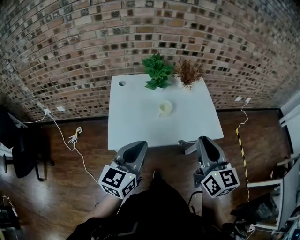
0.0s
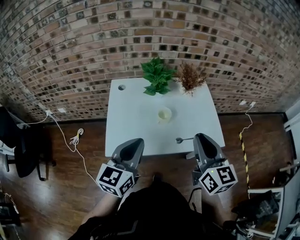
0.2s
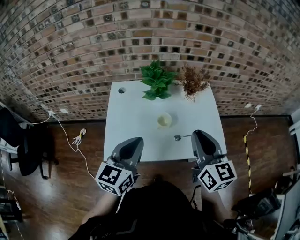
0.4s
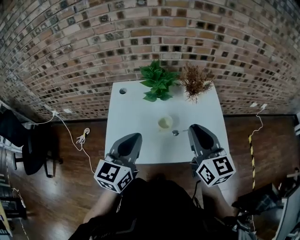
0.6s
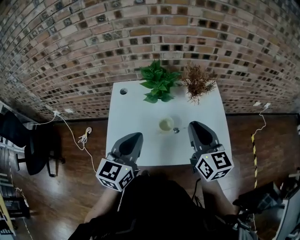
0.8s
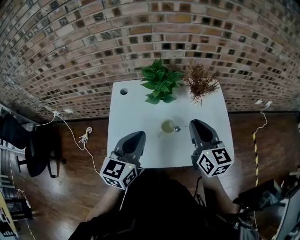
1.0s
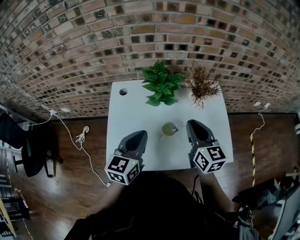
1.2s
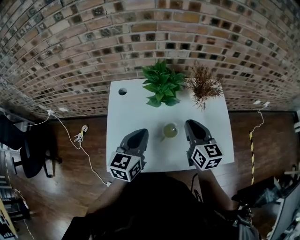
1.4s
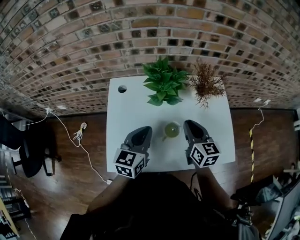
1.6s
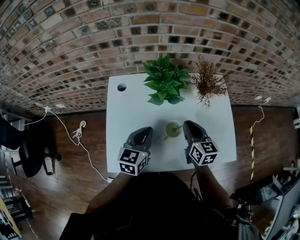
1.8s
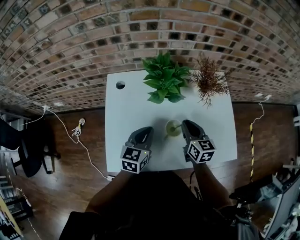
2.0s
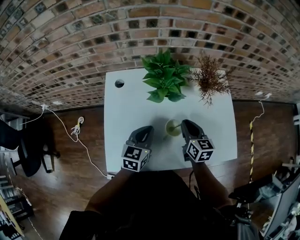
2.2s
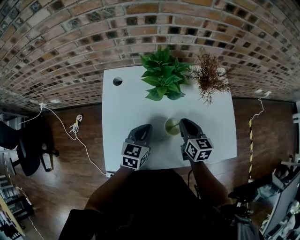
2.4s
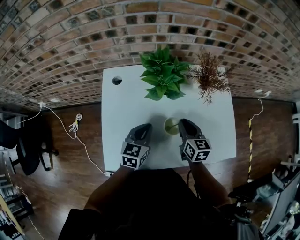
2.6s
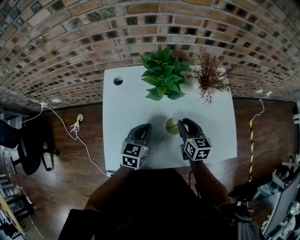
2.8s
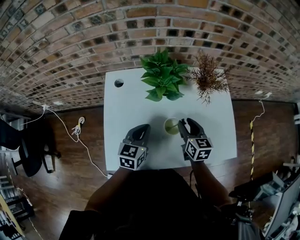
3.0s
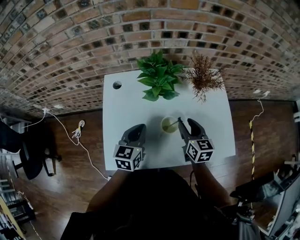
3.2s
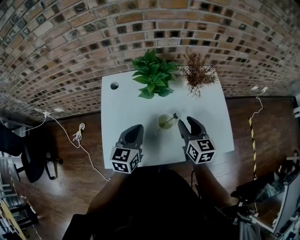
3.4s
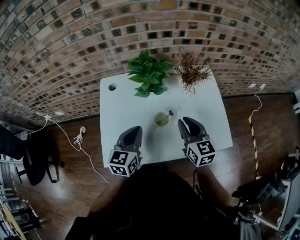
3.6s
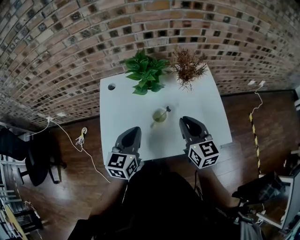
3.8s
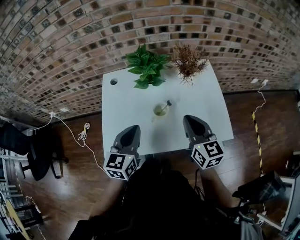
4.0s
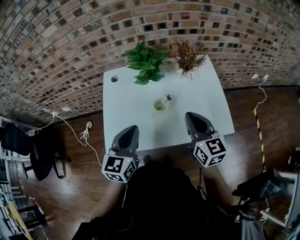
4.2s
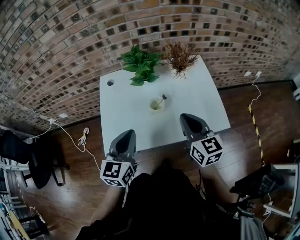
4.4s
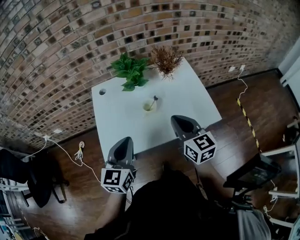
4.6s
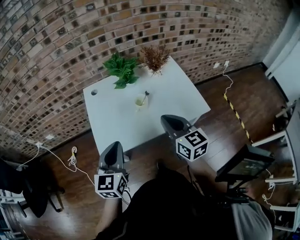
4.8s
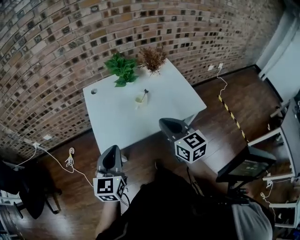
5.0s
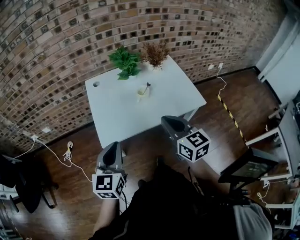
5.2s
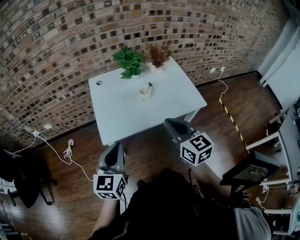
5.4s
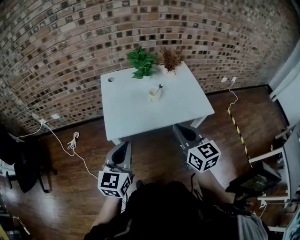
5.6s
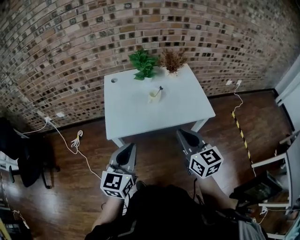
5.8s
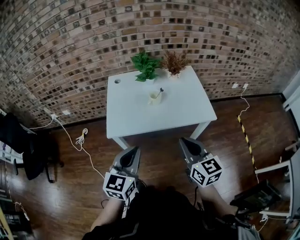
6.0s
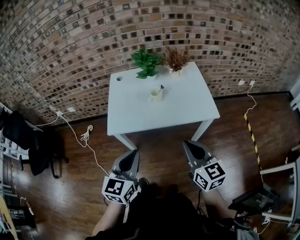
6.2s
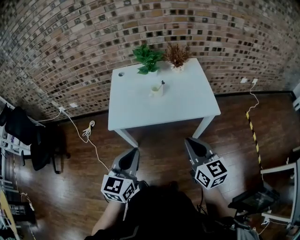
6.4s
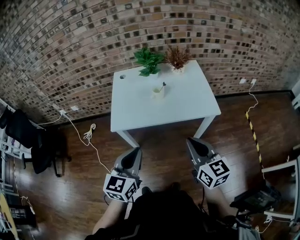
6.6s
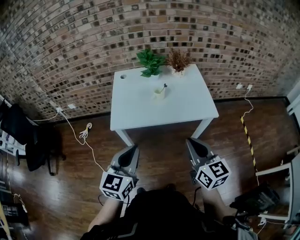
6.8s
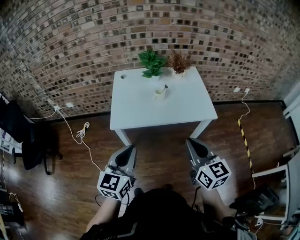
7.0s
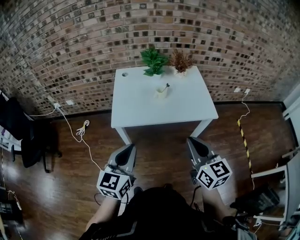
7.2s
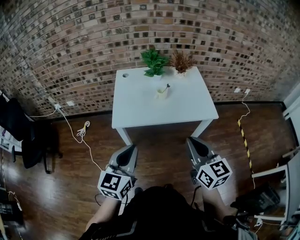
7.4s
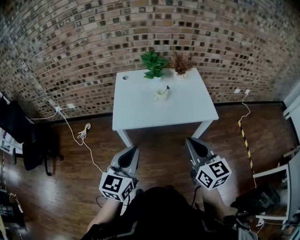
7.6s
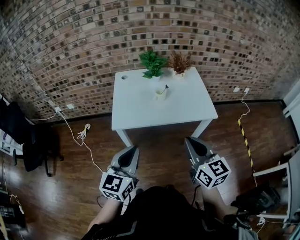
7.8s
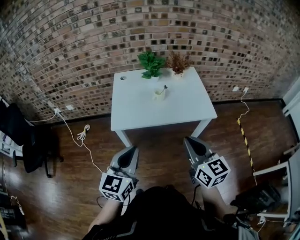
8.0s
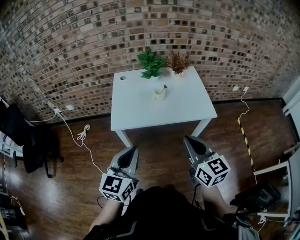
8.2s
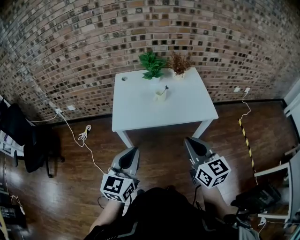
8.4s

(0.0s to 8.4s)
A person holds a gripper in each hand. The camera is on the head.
0.0s - 1.4s: The right gripper shifts roughly 35 cm forward and downward; the left gripper shifts approximately 25 cm forward.
1.4s - 2.8s: The two grippers go roughly 15 cm downward.
2.8s - 4.2s: The grippers both shift upward and backward by about 20 cm. The right gripper closes its fingers.
4.2s - 5.6s: The grippers both shift backward by some 25 cm.
5.6s - 7.0s: Both grippers travel together backward and to the right, roughly 10 cm.
7.0s - 8.4s: The grippers move only a little.

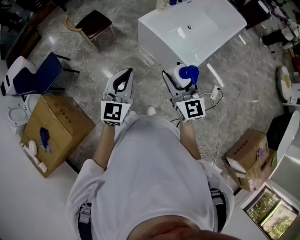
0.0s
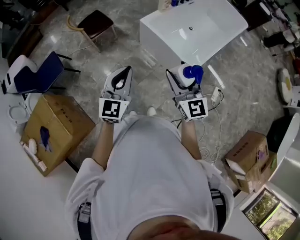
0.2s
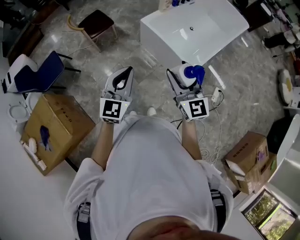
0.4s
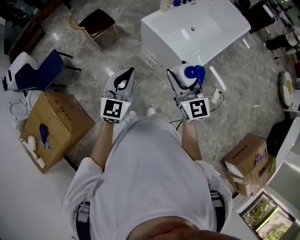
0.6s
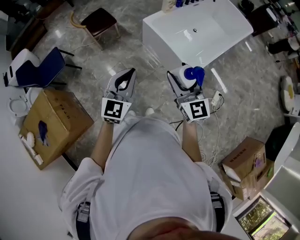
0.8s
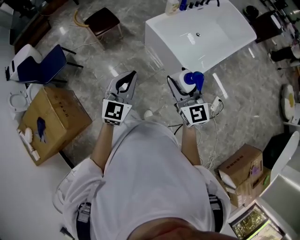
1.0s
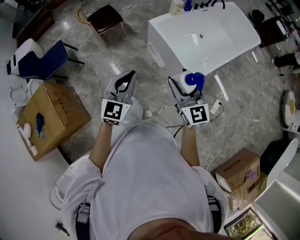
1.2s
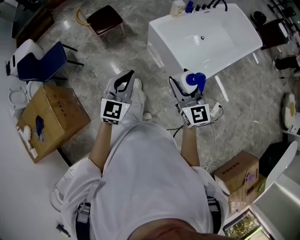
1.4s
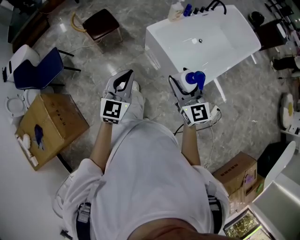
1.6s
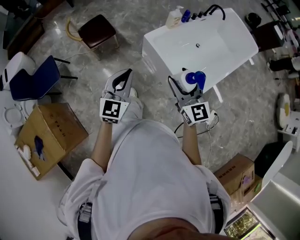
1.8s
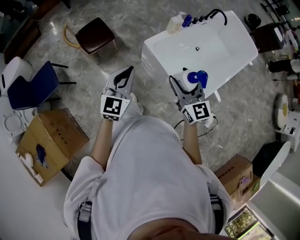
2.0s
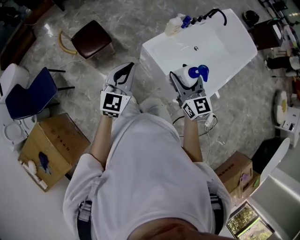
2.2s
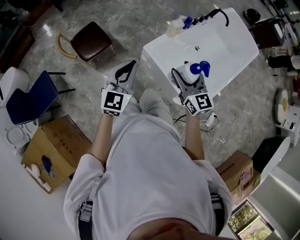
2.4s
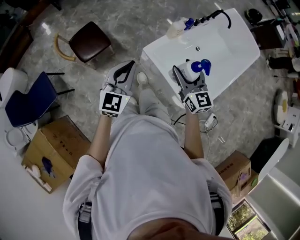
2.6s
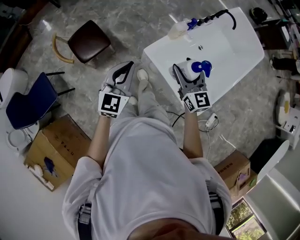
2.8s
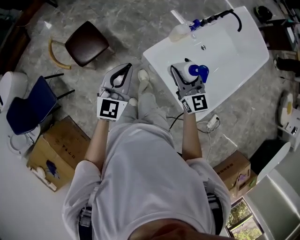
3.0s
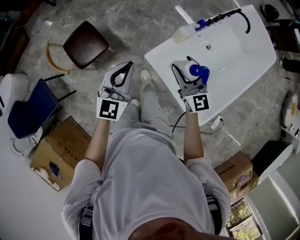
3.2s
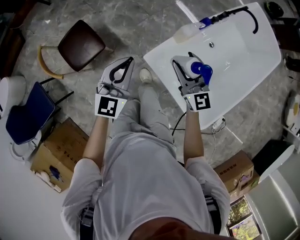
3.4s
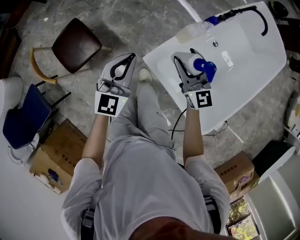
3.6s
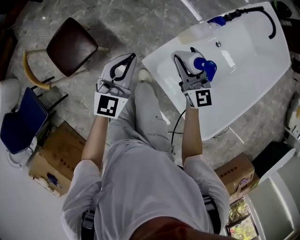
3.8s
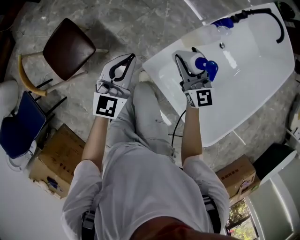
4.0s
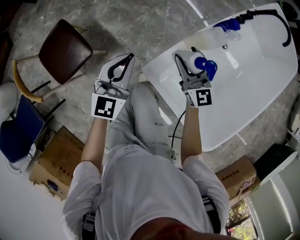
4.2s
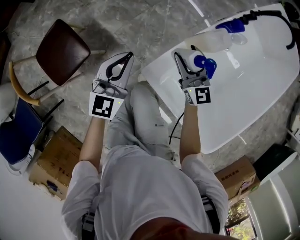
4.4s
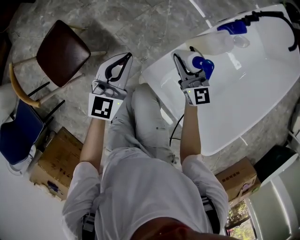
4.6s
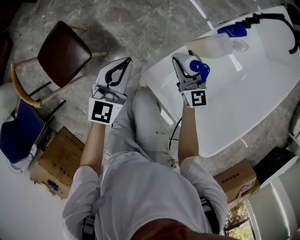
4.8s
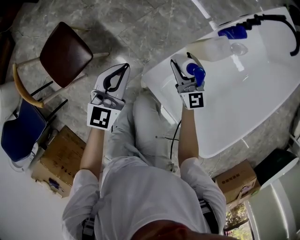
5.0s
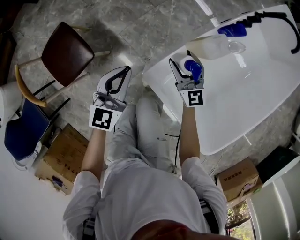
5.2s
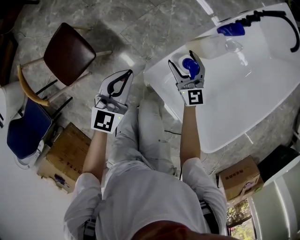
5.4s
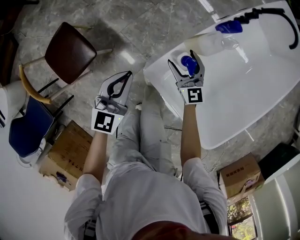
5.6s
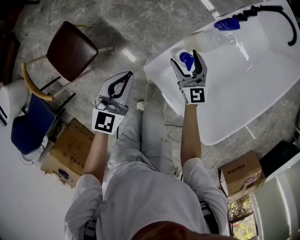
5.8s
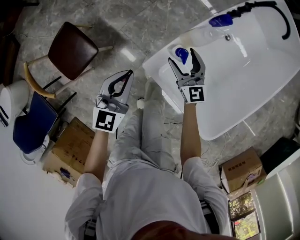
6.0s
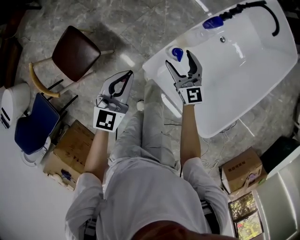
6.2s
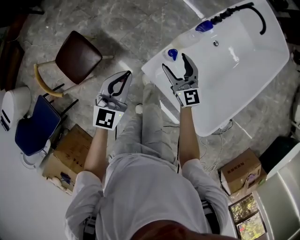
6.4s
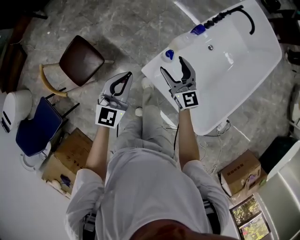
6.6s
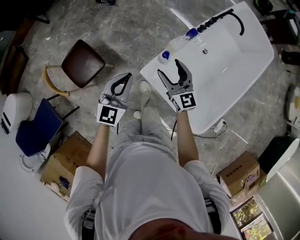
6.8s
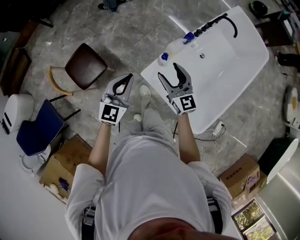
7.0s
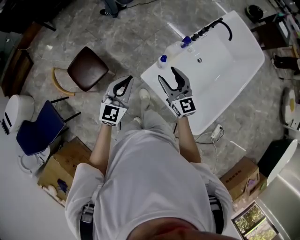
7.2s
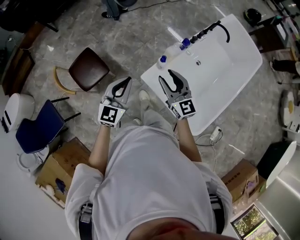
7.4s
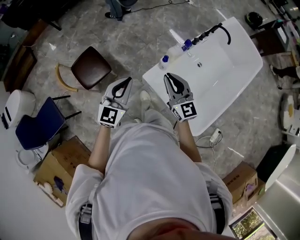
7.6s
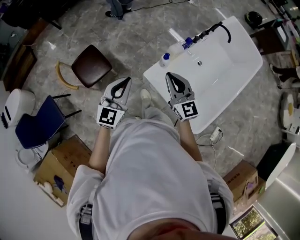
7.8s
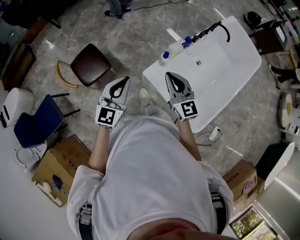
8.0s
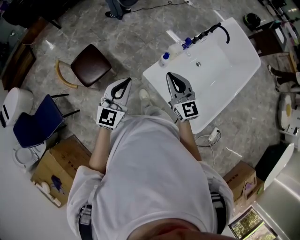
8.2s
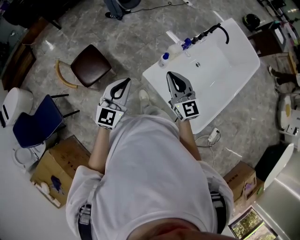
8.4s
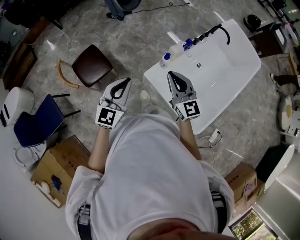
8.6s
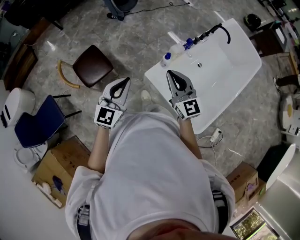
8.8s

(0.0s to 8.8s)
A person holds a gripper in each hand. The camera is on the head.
0.0s - 1.4s: The right gripper moves forward and to the right, roughly 10 cm. The left gripper travels forward by roughly 5 cm.
1.4s - 3.0s: The pair of grippers is taken forward, roughly 50 cm.
3.0s - 4.4s: Both grippers travel together downward and forward, some 40 cm.
4.4s - 5.8s: The left gripper ends up roughly 5 cm from where it was.
5.8s - 7.4s: The grippers both shift upward and backward by roughly 35 cm. The right gripper closes up.
7.4s - 8.8s: The right gripper ends up approximately 5 cm from where it was, and closes its fingers. The left gripper heads backward, covering some 5 cm.

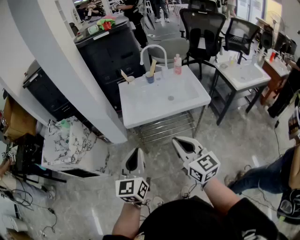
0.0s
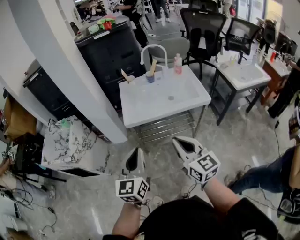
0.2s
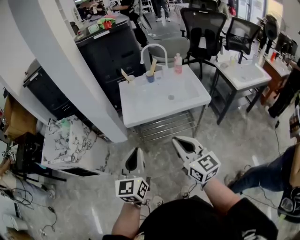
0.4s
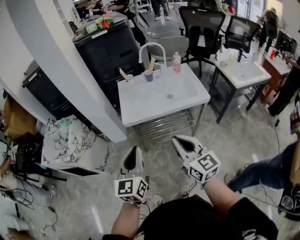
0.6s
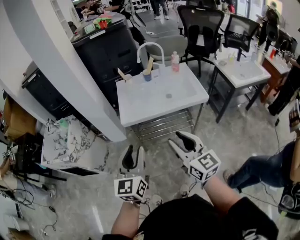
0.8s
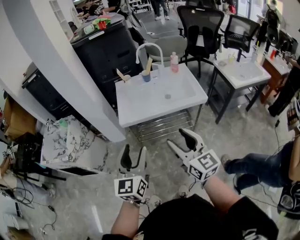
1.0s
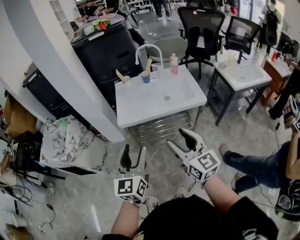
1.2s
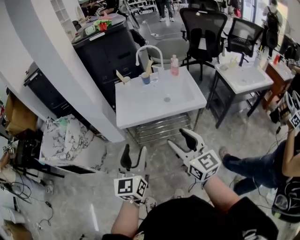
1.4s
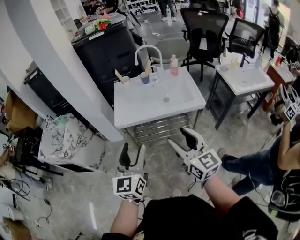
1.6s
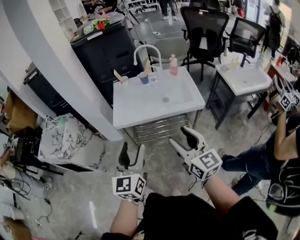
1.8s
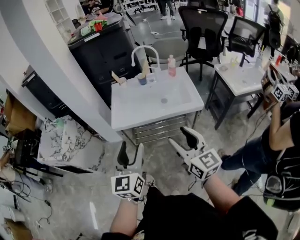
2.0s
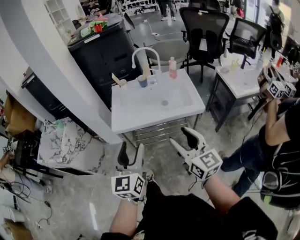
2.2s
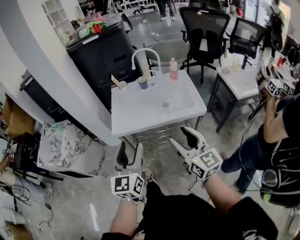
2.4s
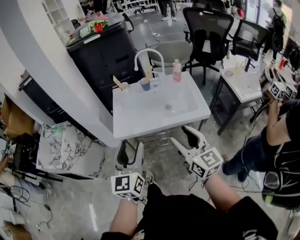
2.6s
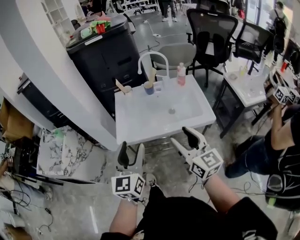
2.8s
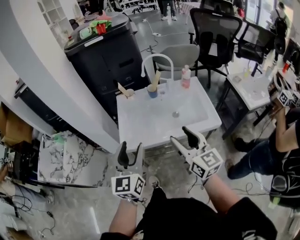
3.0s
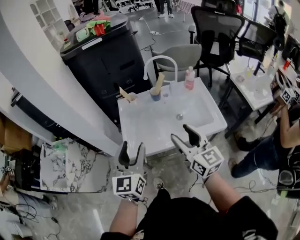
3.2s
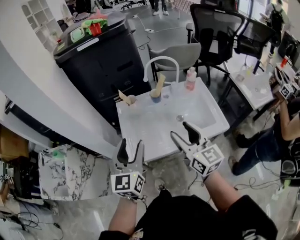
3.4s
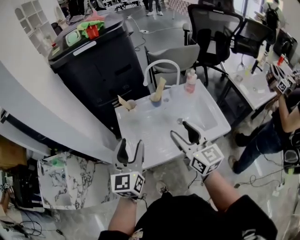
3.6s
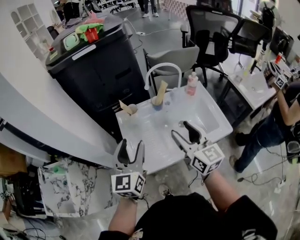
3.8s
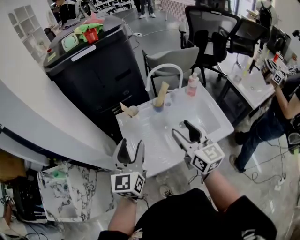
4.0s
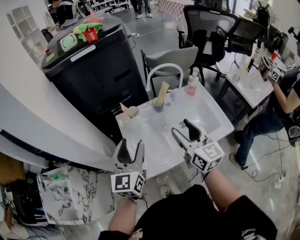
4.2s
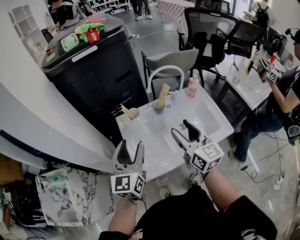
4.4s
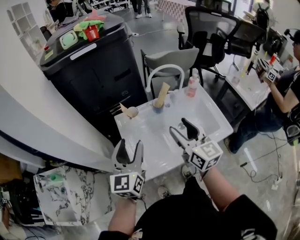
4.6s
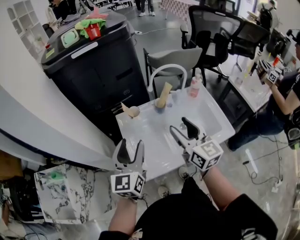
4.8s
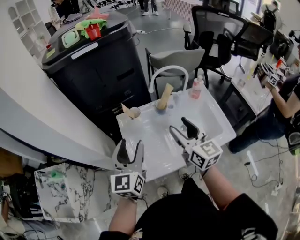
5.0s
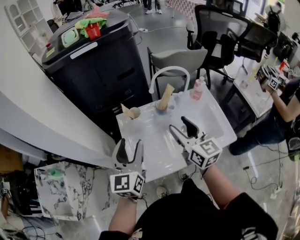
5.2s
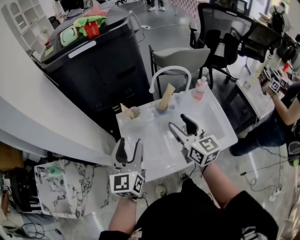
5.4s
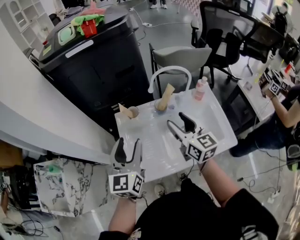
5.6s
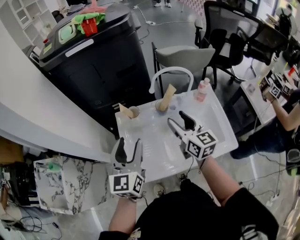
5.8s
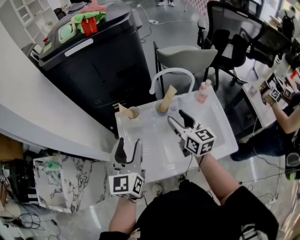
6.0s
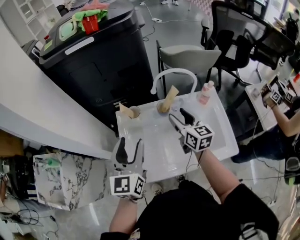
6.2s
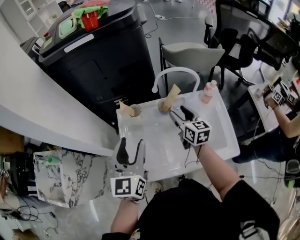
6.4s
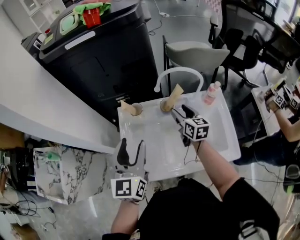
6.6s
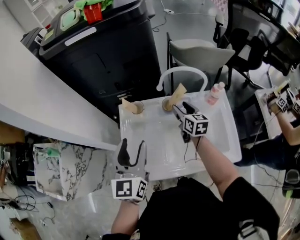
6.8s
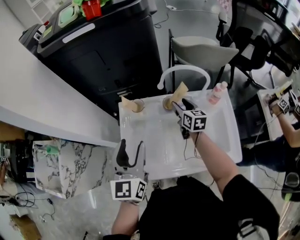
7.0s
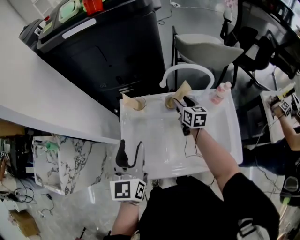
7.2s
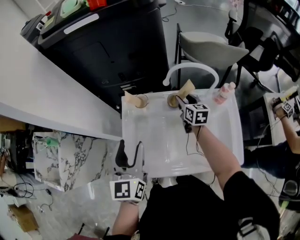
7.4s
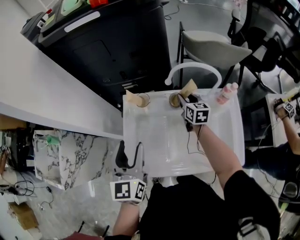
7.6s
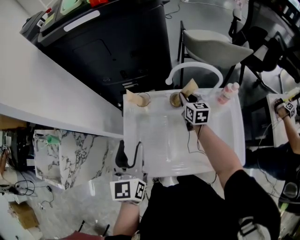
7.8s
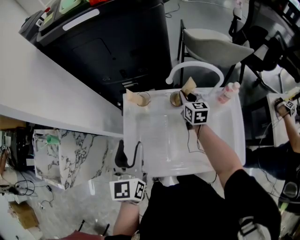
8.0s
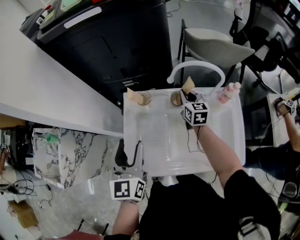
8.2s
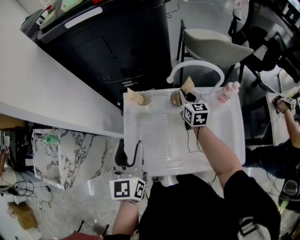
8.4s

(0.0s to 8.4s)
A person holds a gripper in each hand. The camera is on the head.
0.0s - 1.4s: The grippers both shift to the right by roughly 10 cm. The right gripper opens, while the left gripper opens its fingers.
1.4s - 2.8s: Both grippers travel together forward, about 15 cm.
2.8s - 4.2s: The two grippers go some 30 cm forward and to the left.
4.2s - 5.6s: The left gripper heads forward, covering roughly 5 cm. Meanwhile the right gripper moves forward, some 10 cm.
5.6s - 7.0s: The right gripper moves forward and downward, about 25 cm, and changes its angle by approximately 20 degrees.
7.0s - 8.4s: The right gripper closes its fingers.
